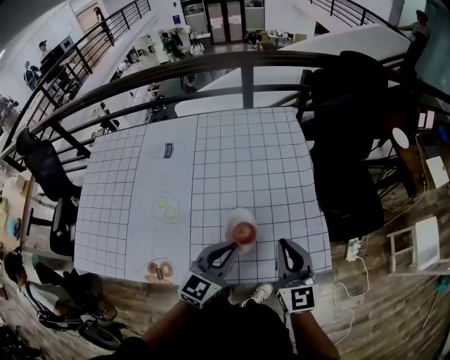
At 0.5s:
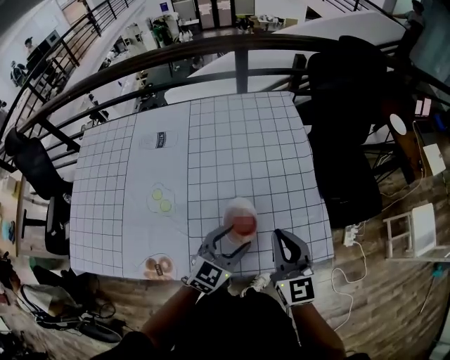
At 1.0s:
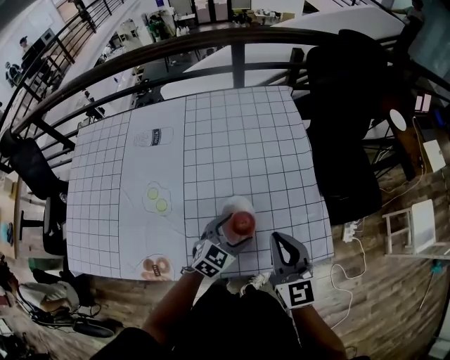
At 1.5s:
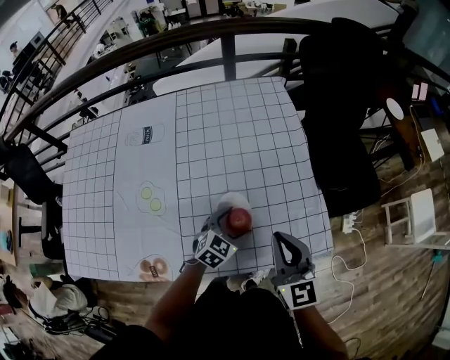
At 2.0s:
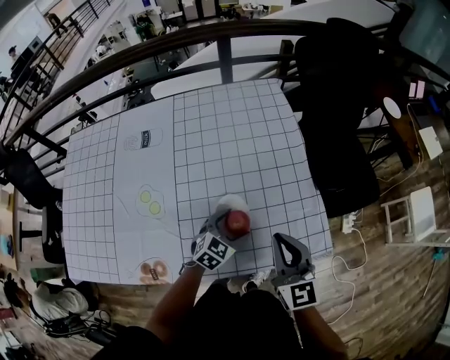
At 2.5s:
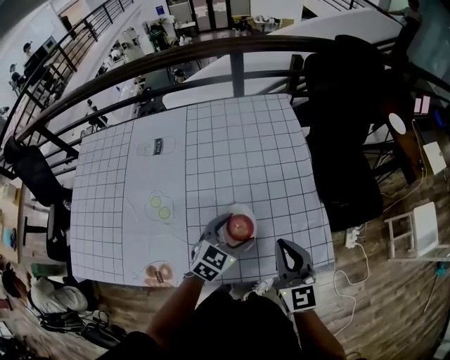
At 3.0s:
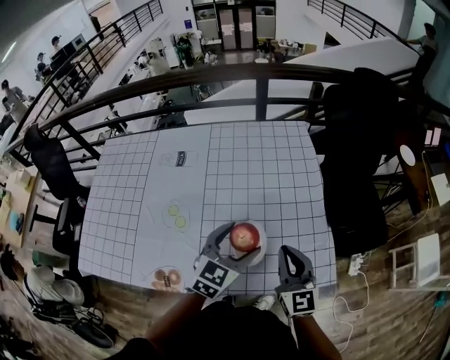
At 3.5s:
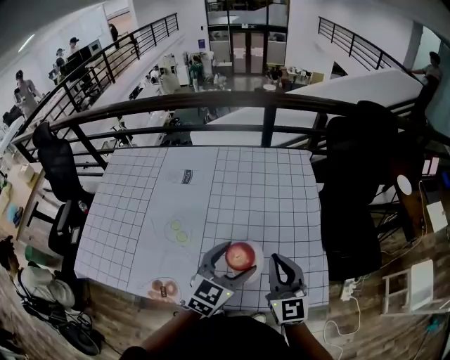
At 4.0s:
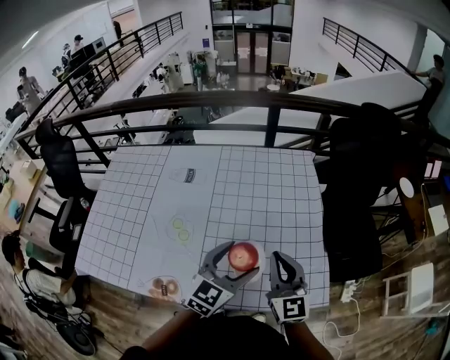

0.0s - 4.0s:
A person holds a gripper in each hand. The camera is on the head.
0.0s - 2.0s: The left gripper goes about 15 cm downward, turns by about 30 degrees, and opens its fingers.
2.0s - 4.0s: The right gripper shifts approximately 10 cm upward and to the left, while the left gripper shifts about 25 cm upward, and rotates about 30 degrees.

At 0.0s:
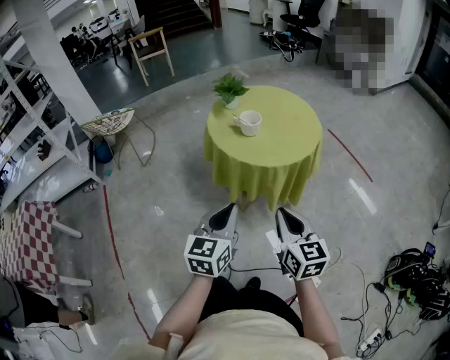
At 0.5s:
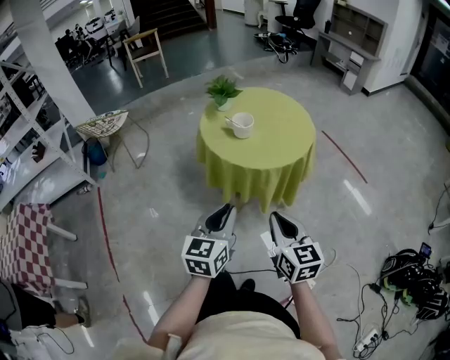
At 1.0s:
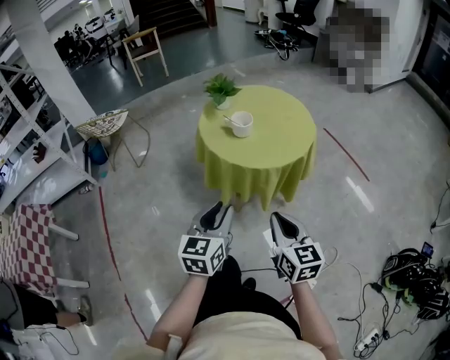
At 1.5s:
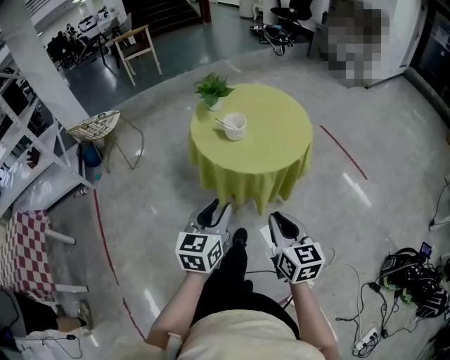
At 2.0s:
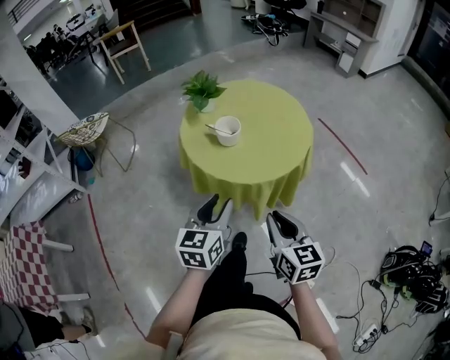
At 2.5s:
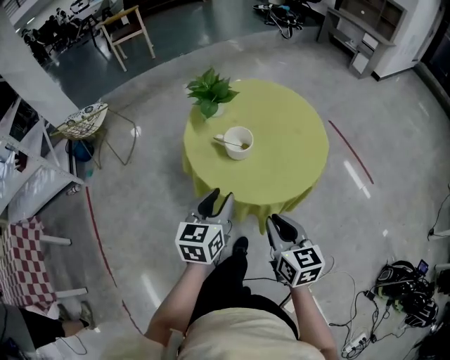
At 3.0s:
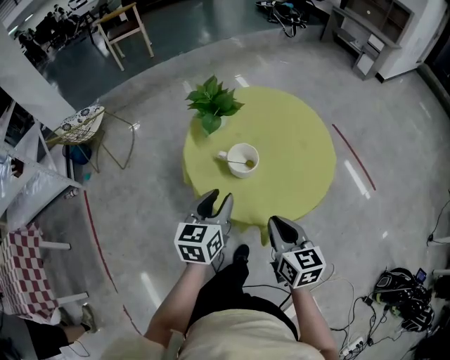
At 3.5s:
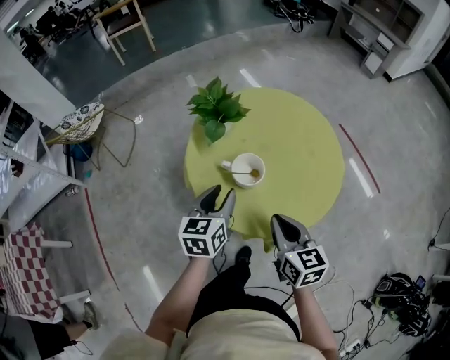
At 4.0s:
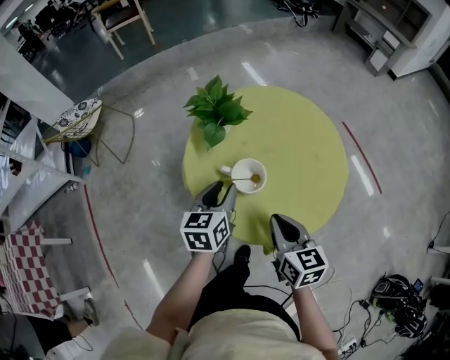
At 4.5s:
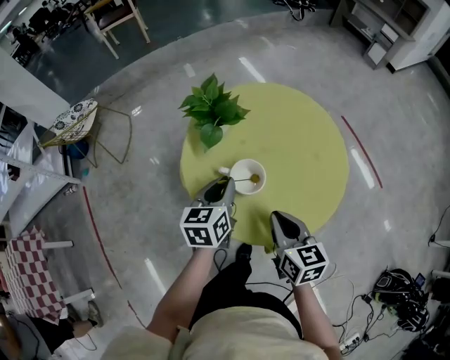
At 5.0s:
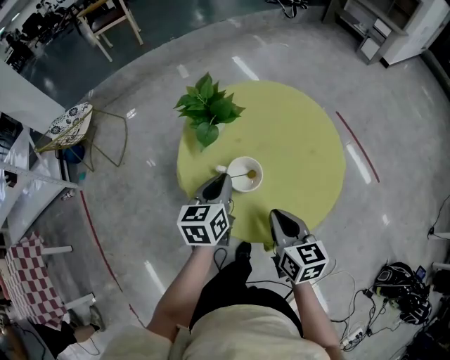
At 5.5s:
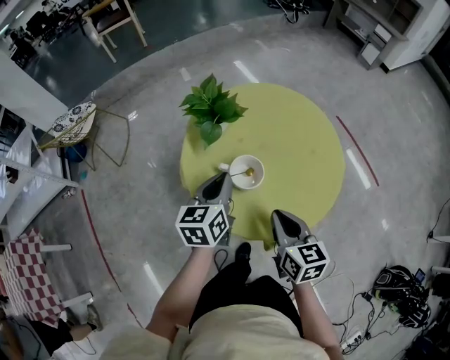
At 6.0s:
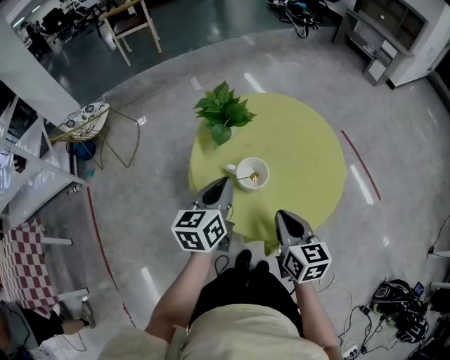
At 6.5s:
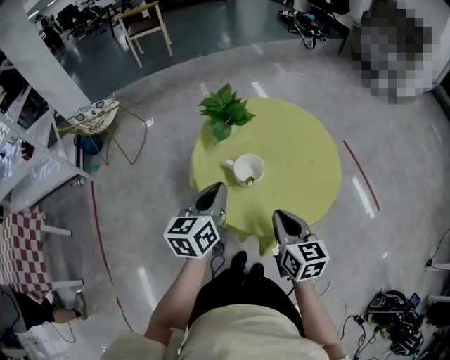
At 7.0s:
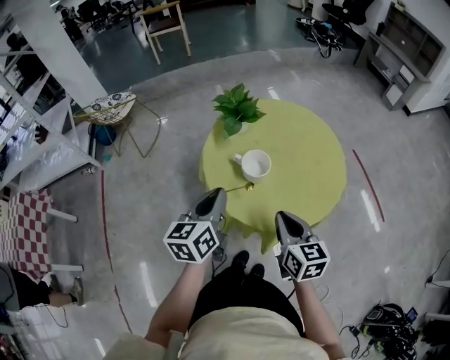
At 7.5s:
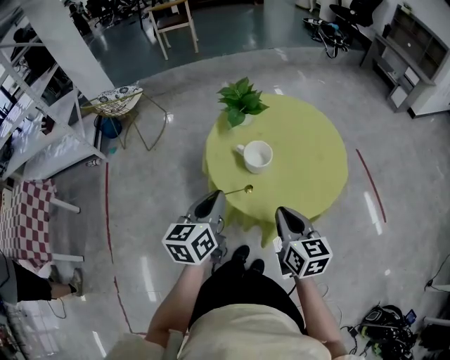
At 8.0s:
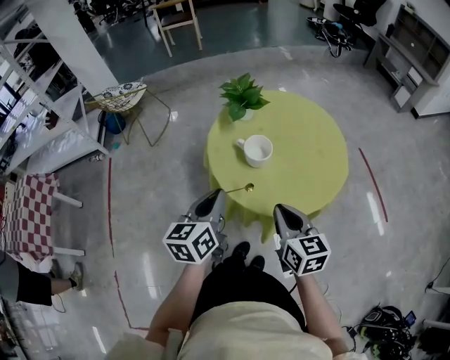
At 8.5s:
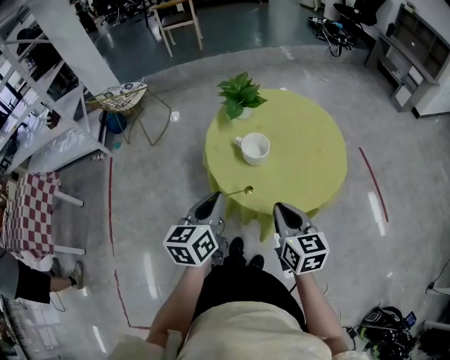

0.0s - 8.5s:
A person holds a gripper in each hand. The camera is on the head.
0.0s - 2.0s: Both grippers travel together forward, approximately 15 cm. The left gripper opens.
2.0s - 4.0s: The grippers both shift forward by about 25 cm.
4.0s - 6.5s: The left gripper moves upward and backward, roughly 10 cm, and closes up.
6.5s - 8.5s: The right gripper heads backward, covering about 5 cm. Meanwhile the left gripper moves backward, roughly 10 cm.

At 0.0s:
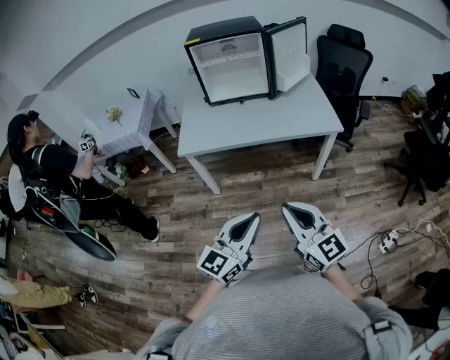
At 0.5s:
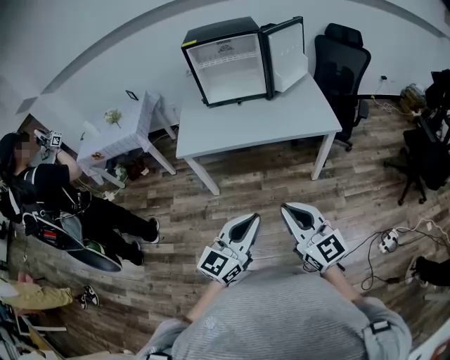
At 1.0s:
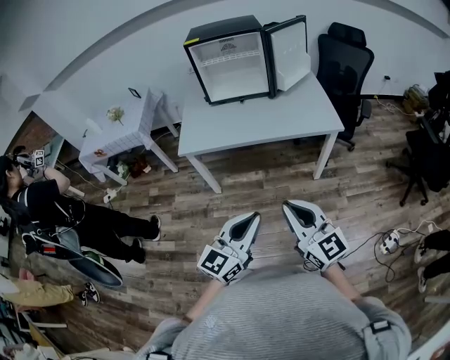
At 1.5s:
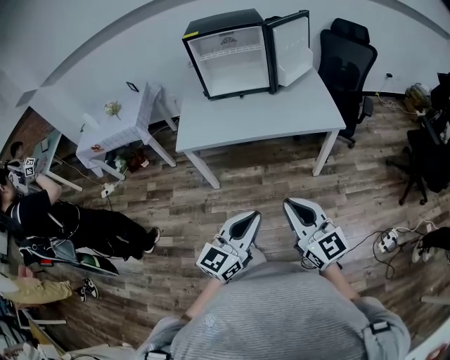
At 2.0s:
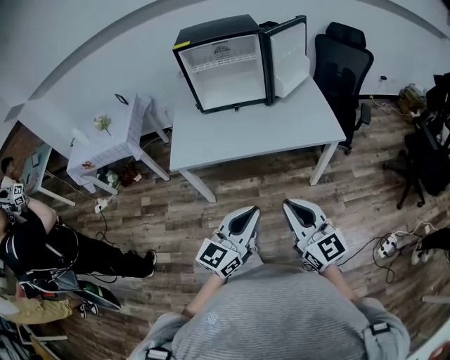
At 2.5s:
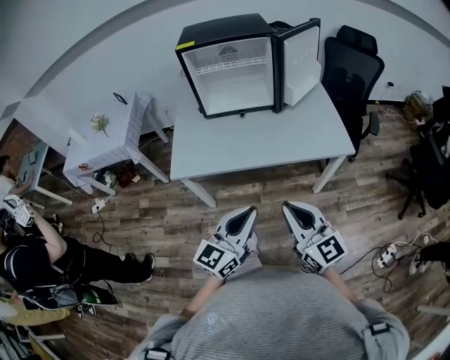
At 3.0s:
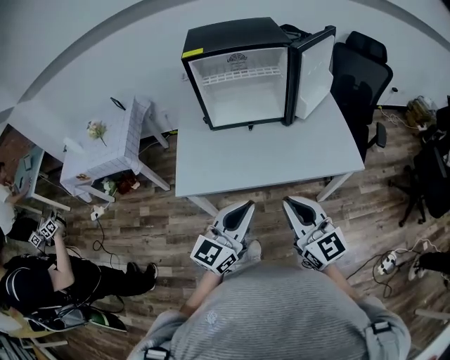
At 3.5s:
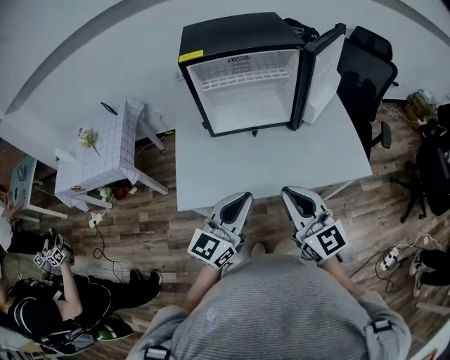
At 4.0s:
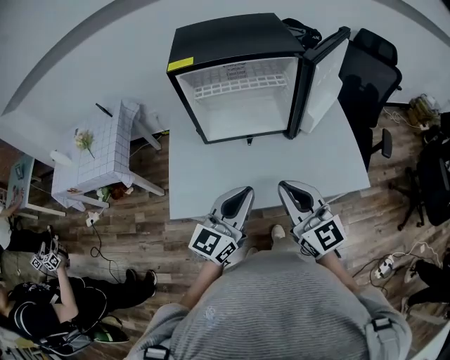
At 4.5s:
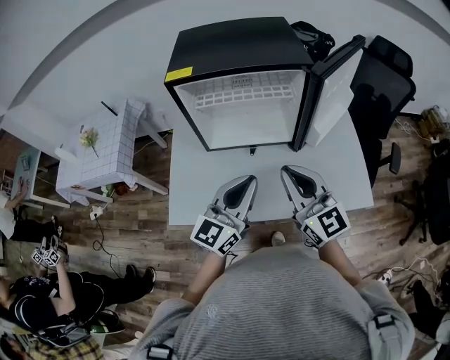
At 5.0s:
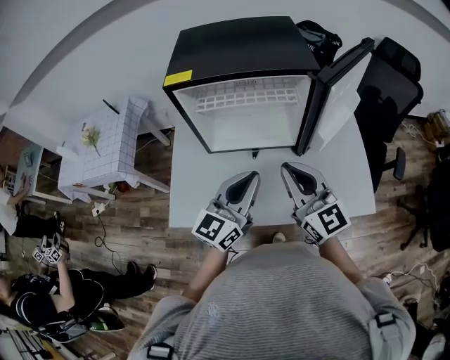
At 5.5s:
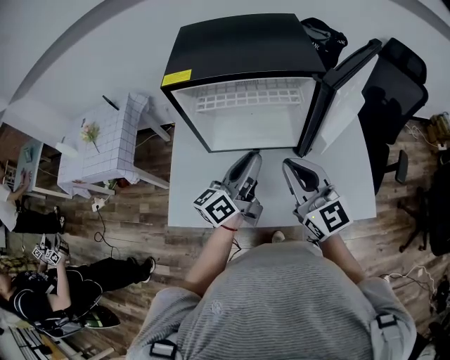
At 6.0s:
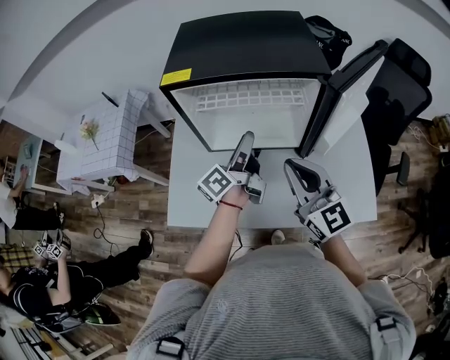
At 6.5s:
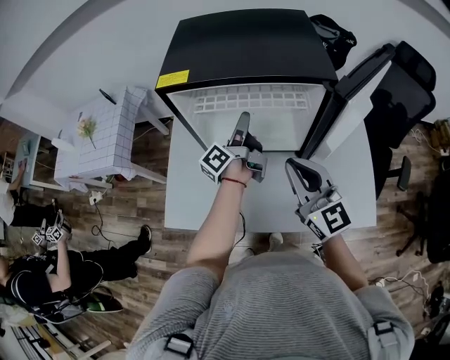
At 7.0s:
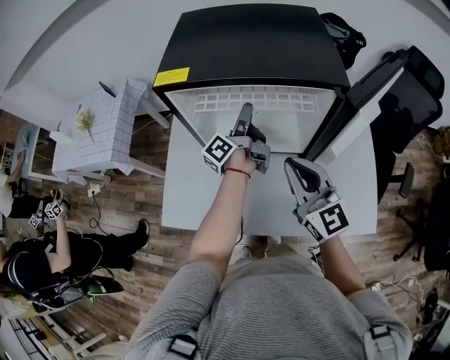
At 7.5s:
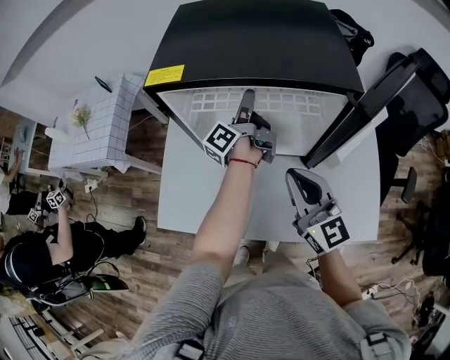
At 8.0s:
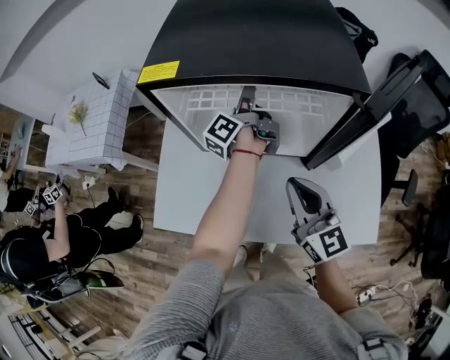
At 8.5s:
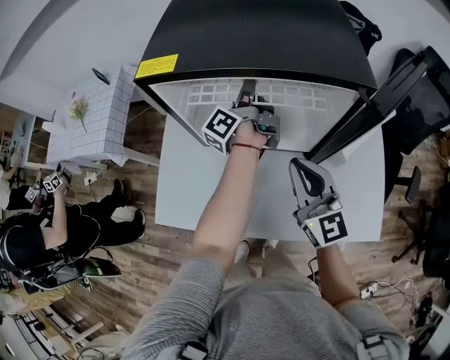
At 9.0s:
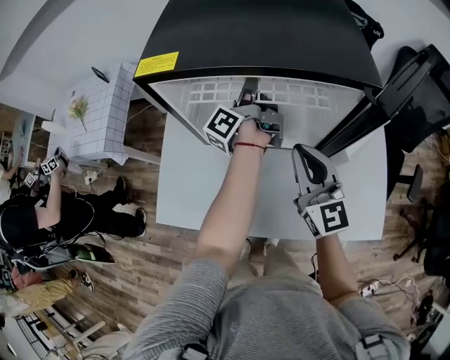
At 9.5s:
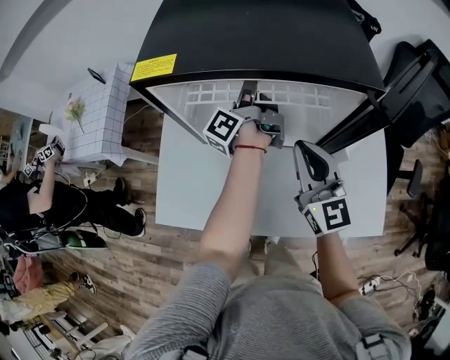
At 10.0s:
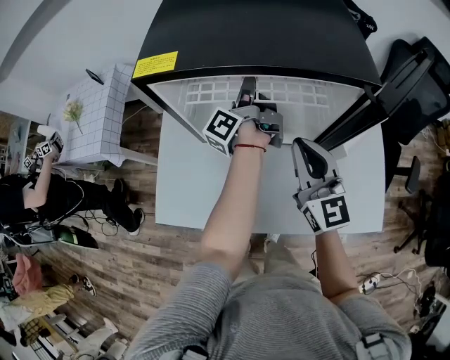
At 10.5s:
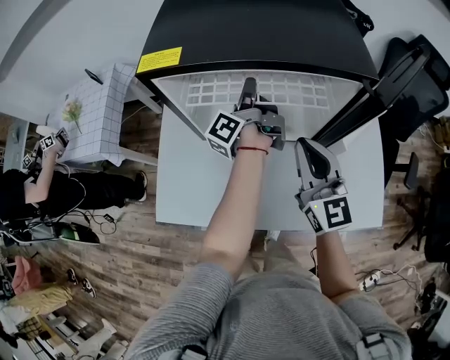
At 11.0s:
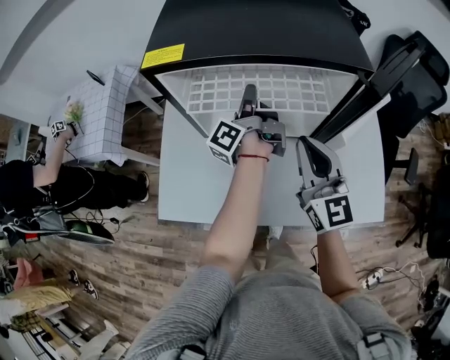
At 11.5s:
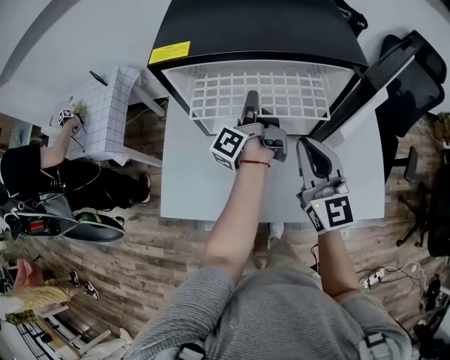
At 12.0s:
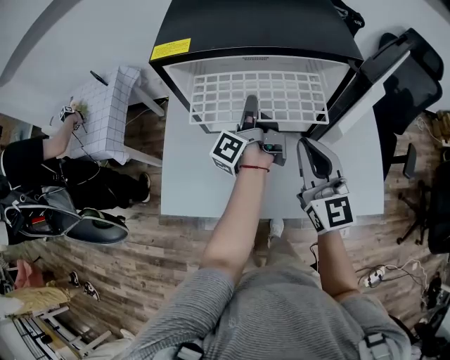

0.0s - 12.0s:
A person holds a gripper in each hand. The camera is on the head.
0.0s - 2.0s: The grippers both shift forward by about 10 cm.
2.0s - 4.0s: Both grippers move forward, approximately 35 cm.
4.0s - 6.0s: The left gripper is displaced forward by about 25 cm, twists approximately 50 degrees counterclockwise, seen from behind, and opens up; the right gripper goes some 15 cm forward.
6.0s - 8.0s: The right gripper travels downward by roughly 10 cm. Meanwhile the left gripper heads forward, covering some 20 cm, and swivels roughly 20 degrees.
8.0s - 10.0s: The right gripper travels forward by approximately 5 cm; the left gripper closes its fingers.
10.0s - 12.0s: The two grippers go about 10 cm backward.

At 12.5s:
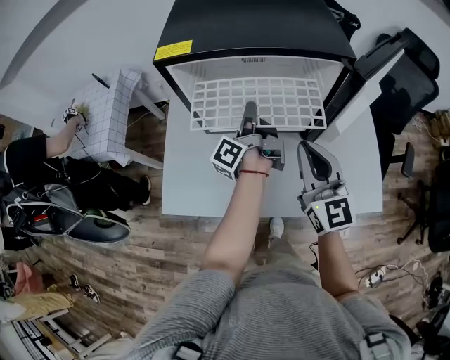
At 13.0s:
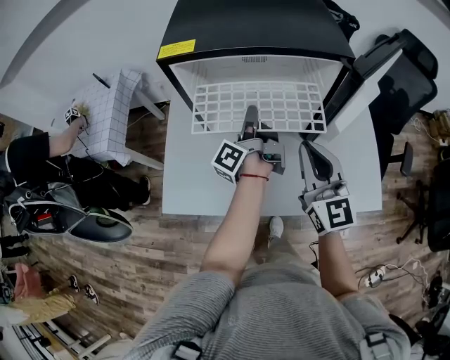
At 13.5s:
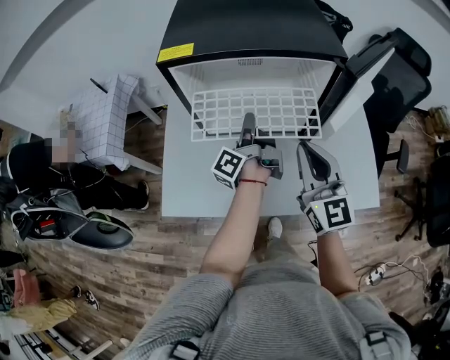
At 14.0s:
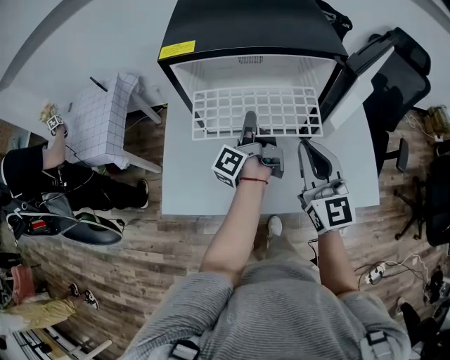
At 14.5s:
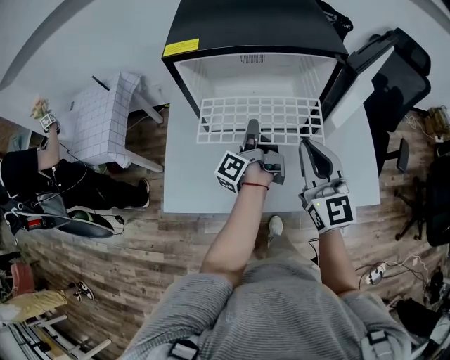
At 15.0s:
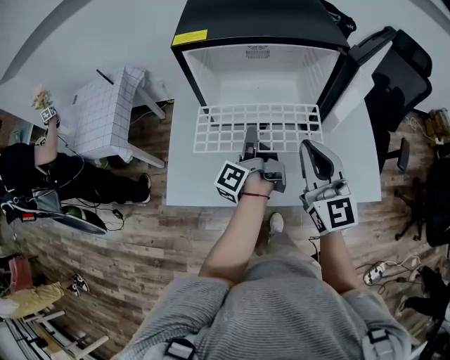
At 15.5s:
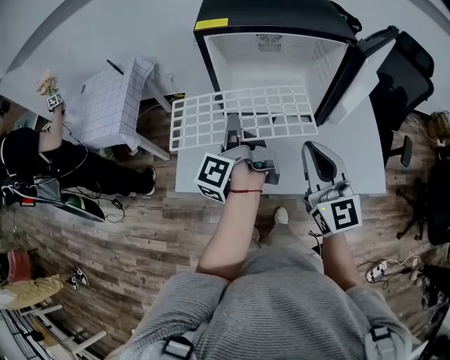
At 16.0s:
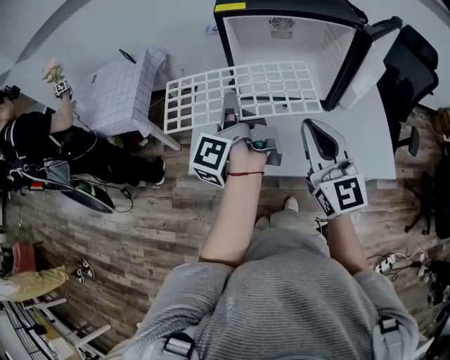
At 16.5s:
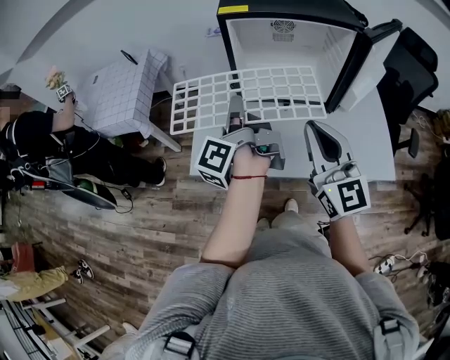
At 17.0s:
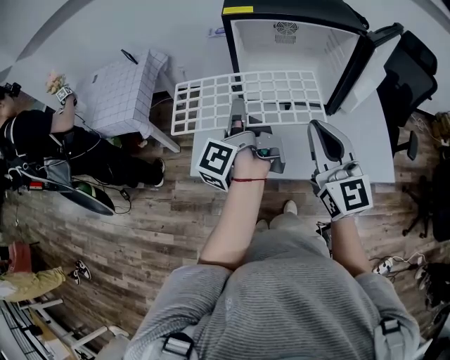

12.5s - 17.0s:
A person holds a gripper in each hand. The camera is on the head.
12.5s - 14.5s: The left gripper heads backward, covering approximately 5 cm.
14.5s - 17.0s: The left gripper is displaced to the left, upward and backward by approximately 25 cm. Meanwhile the right gripper shifts about 15 cm to the left and backward.
